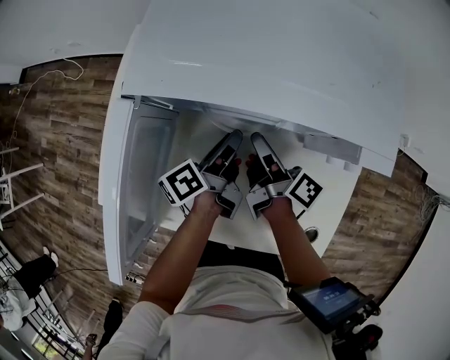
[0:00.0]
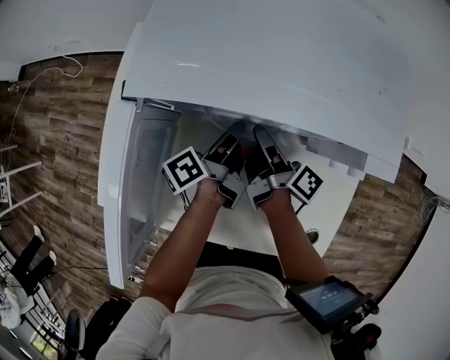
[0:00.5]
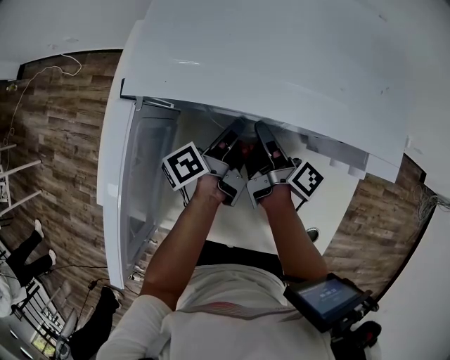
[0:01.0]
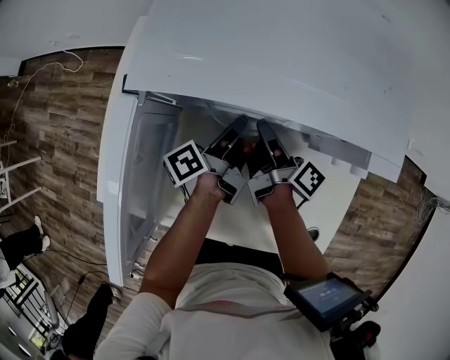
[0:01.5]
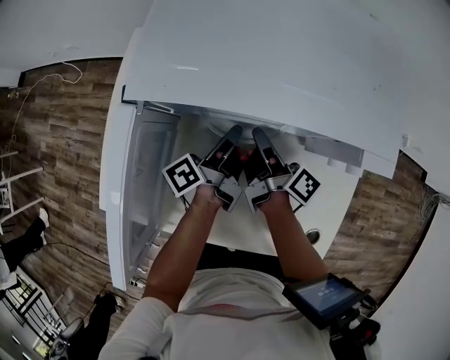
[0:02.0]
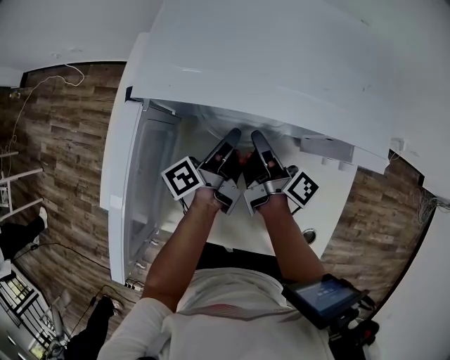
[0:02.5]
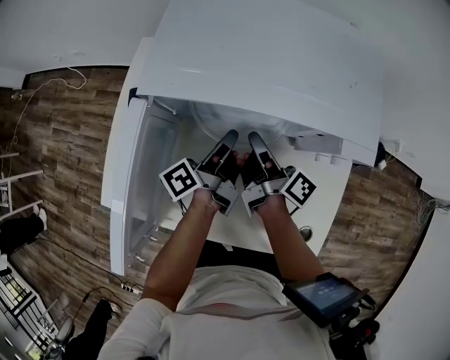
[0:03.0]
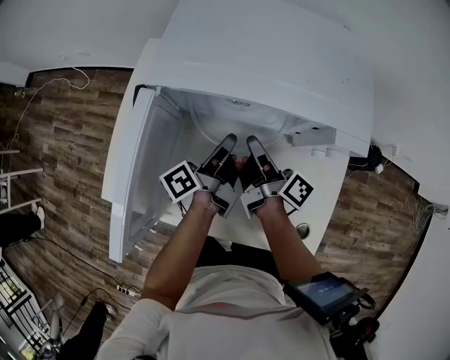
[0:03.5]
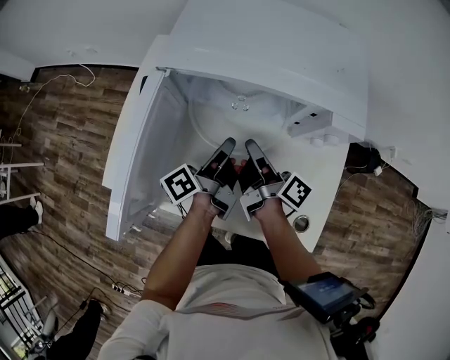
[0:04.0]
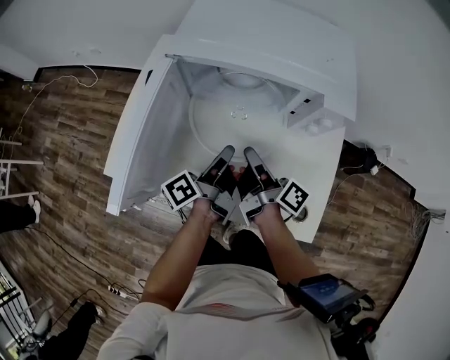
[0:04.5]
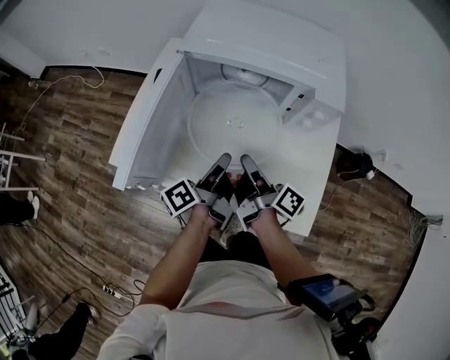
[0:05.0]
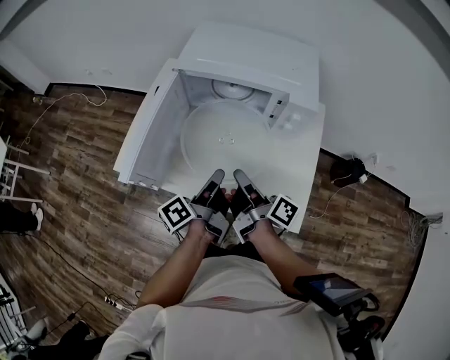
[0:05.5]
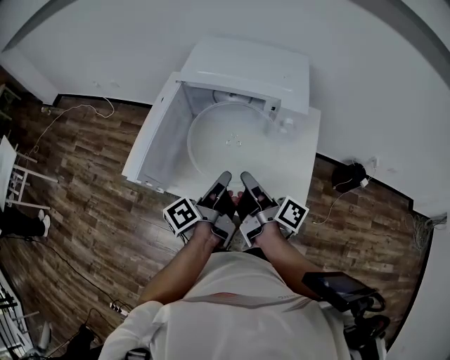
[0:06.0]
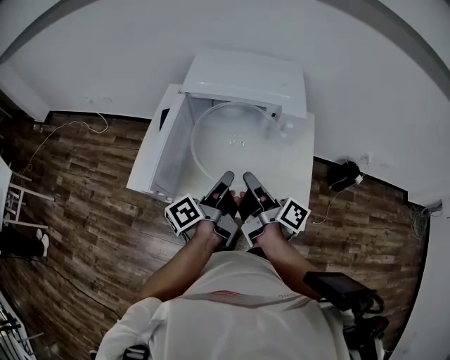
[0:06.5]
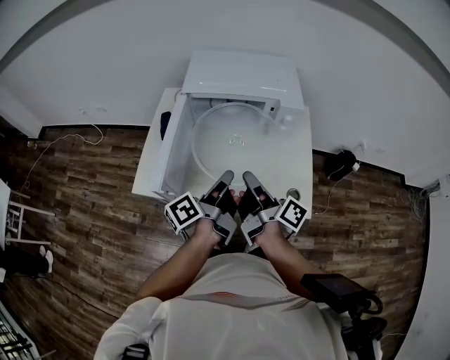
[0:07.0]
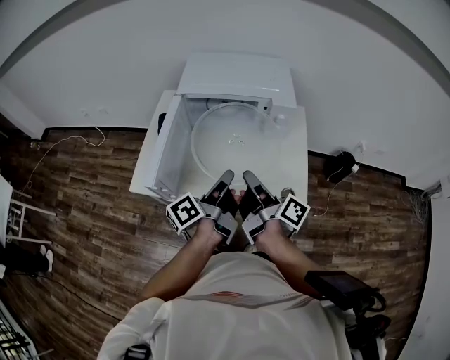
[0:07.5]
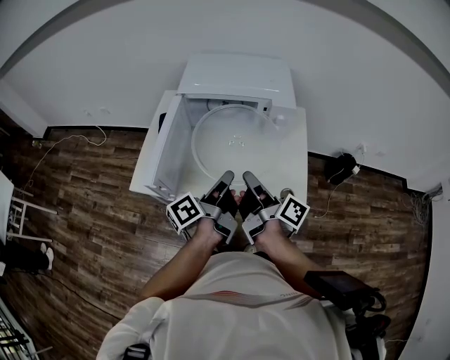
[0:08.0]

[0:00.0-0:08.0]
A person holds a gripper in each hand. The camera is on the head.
0:00.0 to 0:02.0: The right gripper closes. The left gripper closes.
0:02.0 to 0:04.0: The two grippers go some 10 cm backward and upward.
0:04.0 to 0:06.0: Both grippers travel together backward and upward, approximately 25 cm.
0:06.0 to 0:08.0: The right gripper shifts by some 5 cm. The left gripper changes place by about 5 cm.

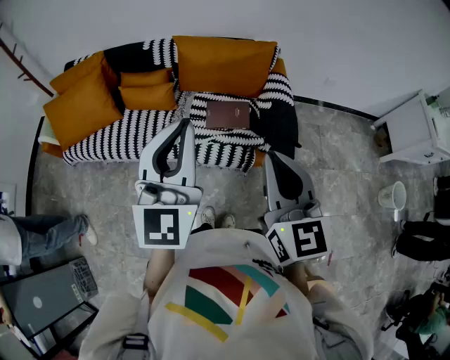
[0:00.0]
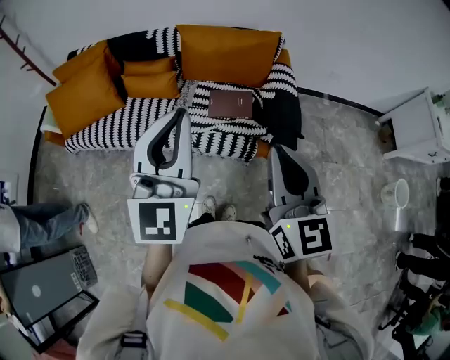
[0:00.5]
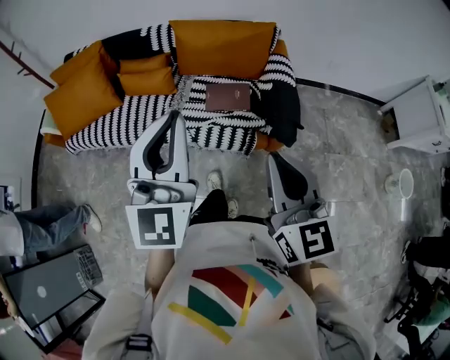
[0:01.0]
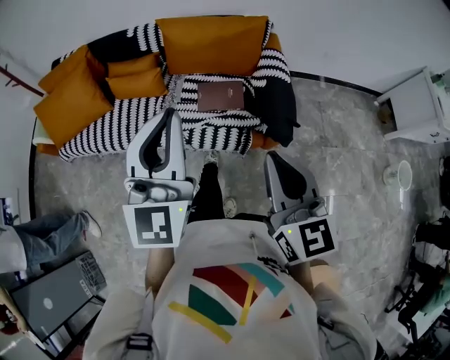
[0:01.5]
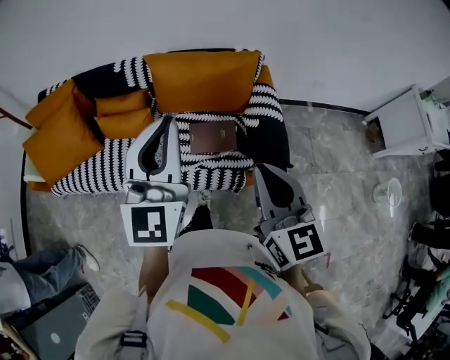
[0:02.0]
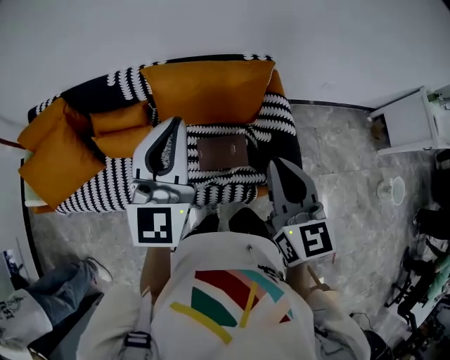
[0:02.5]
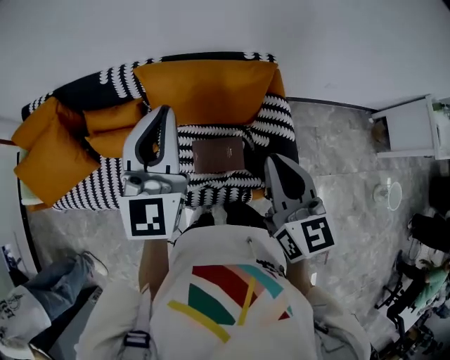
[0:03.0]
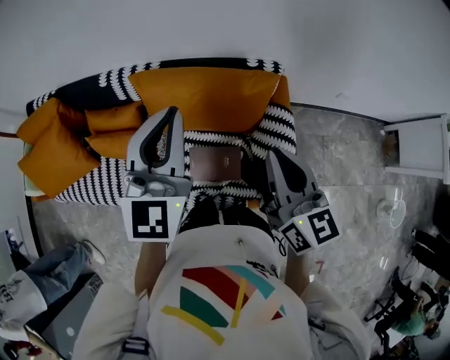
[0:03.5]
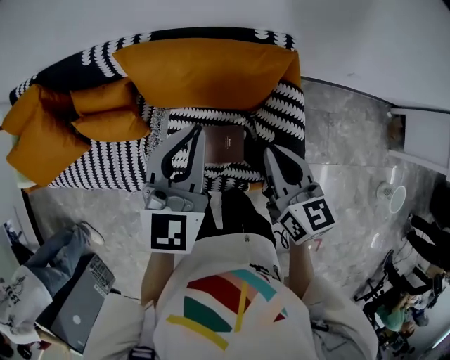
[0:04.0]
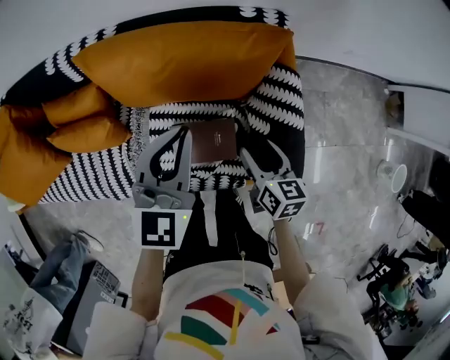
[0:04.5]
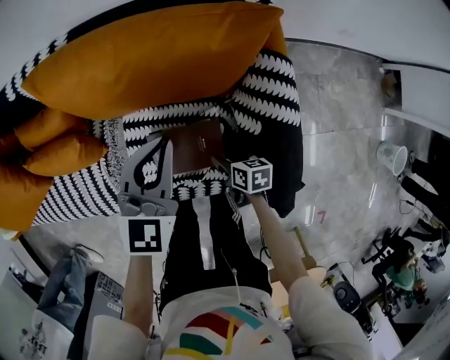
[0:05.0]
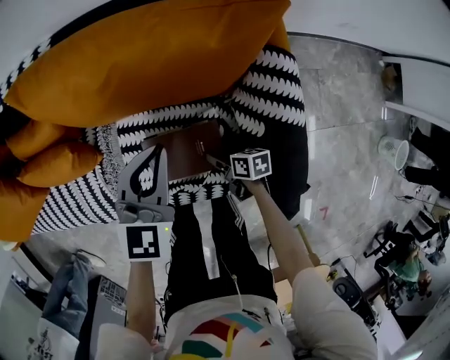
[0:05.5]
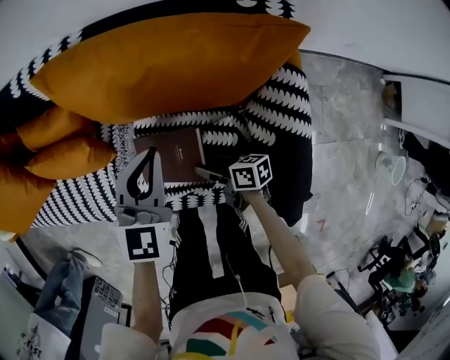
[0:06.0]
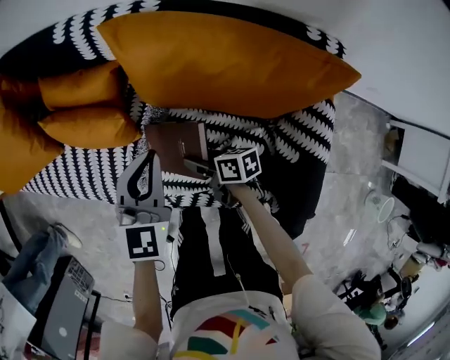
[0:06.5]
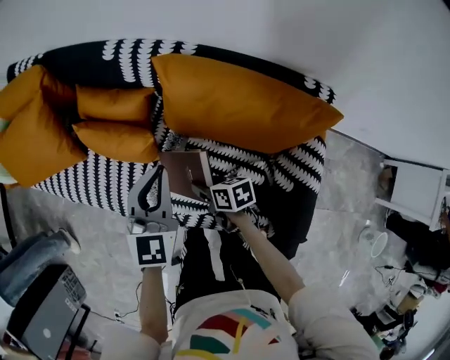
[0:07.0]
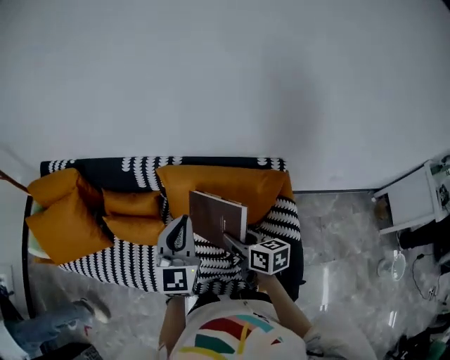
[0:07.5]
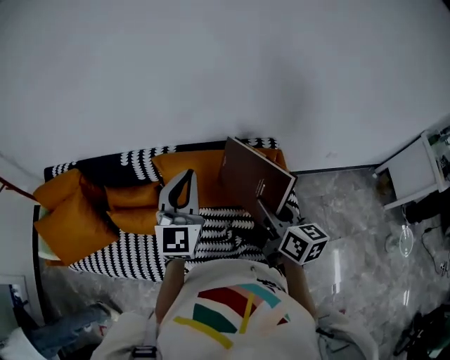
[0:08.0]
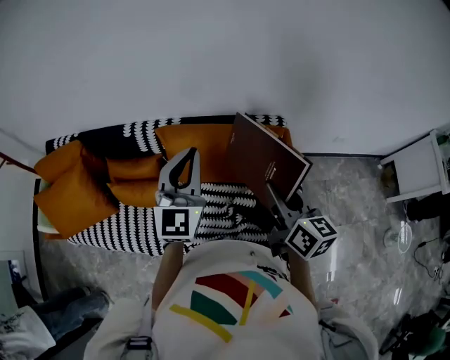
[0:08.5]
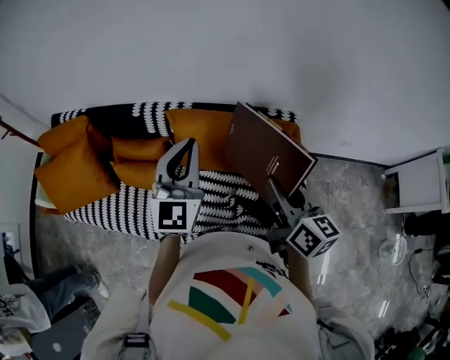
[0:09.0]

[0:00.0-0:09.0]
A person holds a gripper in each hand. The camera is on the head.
0:00.0 to 0:02.0: Both grippers travel together forward, about 15 cm.
0:02.0 to 0:04.5: The right gripper goes about 50 cm downward and forward, changes its angle by about 40 degrees, and opens its fingers. Meanwhile the left gripper shifts approximately 40 cm forward and downward, and turns by some 30 degrees.
0:04.5 to 0:07.0: The right gripper moves approximately 30 cm, and rotates some 50 degrees. The left gripper travels downward and back again, about 15 cm each way, and changes its angle by roughly 30 degrees.
0:07.0 to 0:09.0: The left gripper moves upward, about 25 cm, and swivels about 20 degrees, while the right gripper moves upward, about 40 cm, and tips its fingers upward by some 30 degrees.

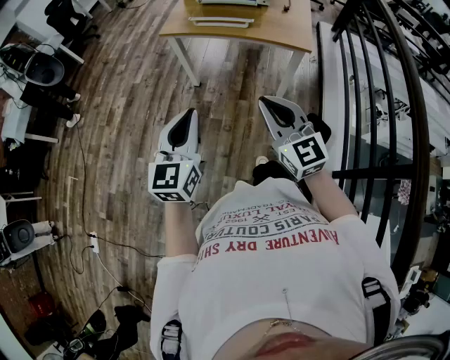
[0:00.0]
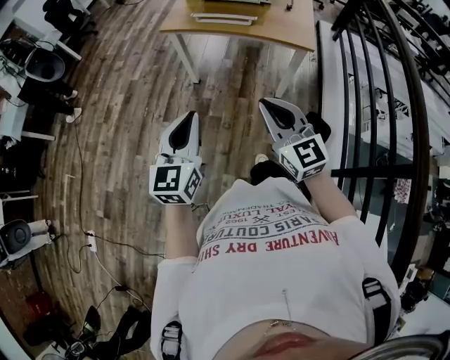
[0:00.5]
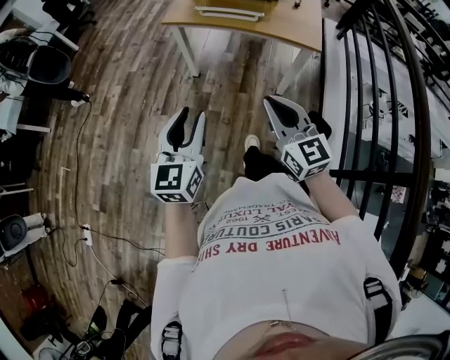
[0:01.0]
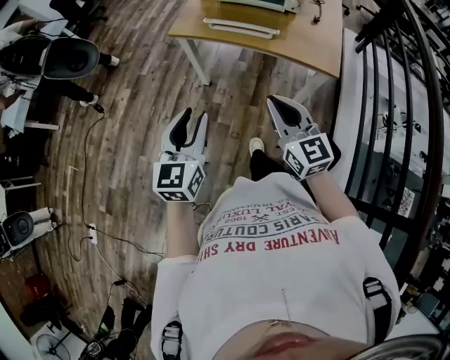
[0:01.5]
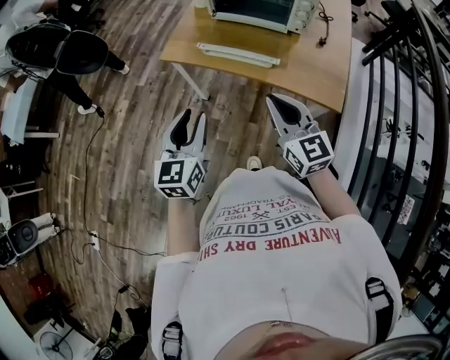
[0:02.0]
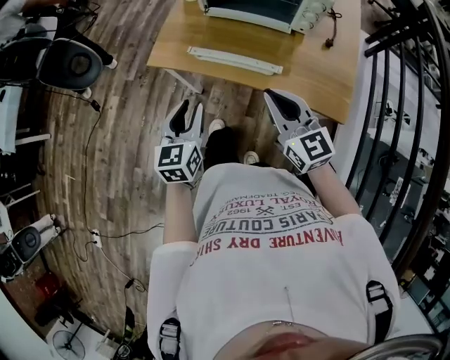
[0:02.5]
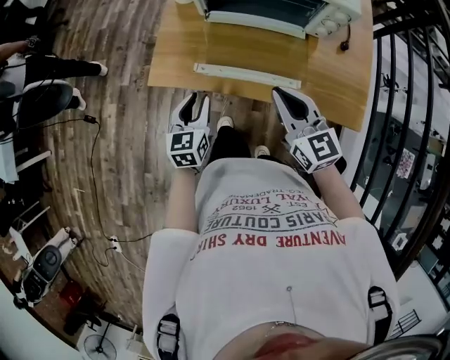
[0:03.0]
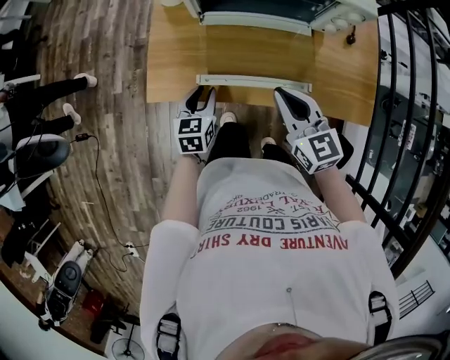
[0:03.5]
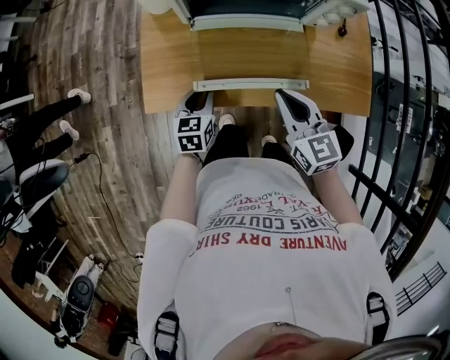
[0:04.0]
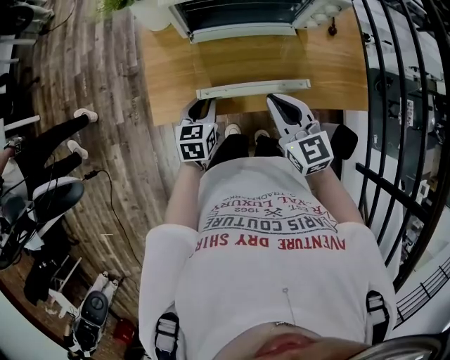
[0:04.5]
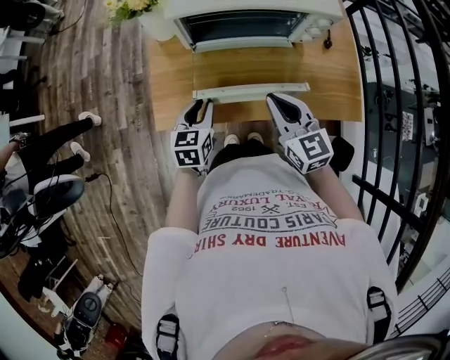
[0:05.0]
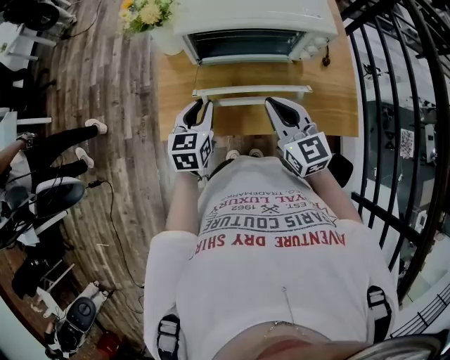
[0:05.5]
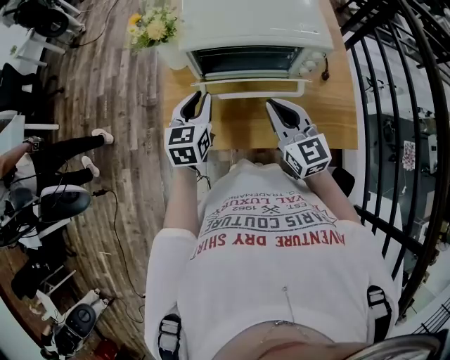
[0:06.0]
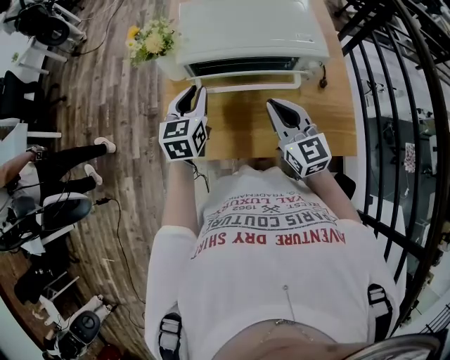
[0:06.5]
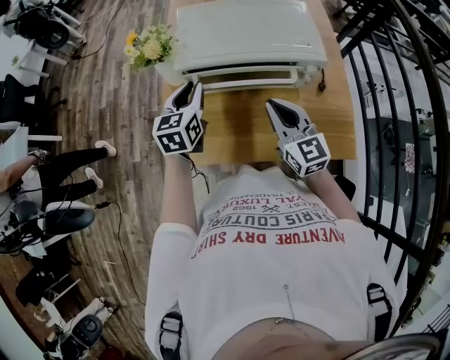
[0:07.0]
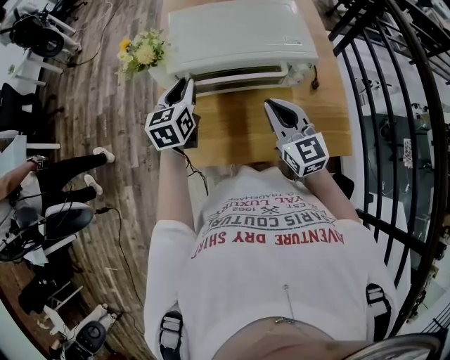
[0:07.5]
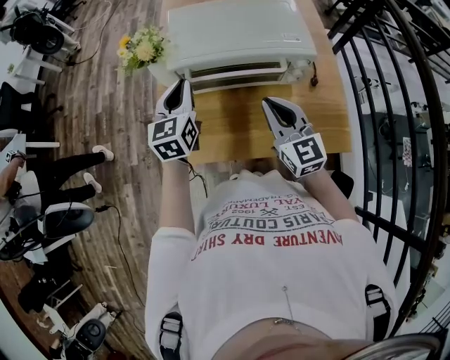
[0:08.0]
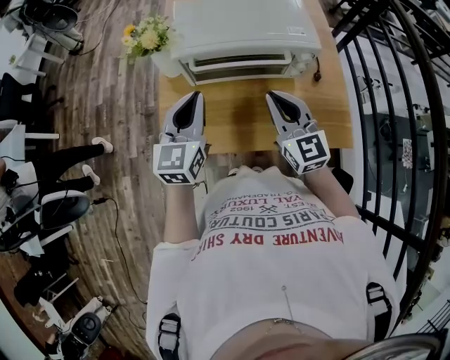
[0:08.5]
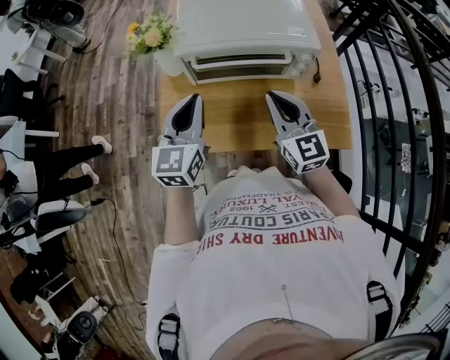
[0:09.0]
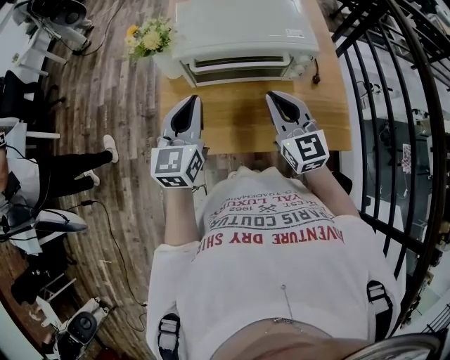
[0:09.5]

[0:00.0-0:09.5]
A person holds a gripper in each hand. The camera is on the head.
0:00.0 to 0:02.0: The two grippers go about 35 cm forward. The left gripper opens its fingers.
0:02.0 to 0:04.0: The right gripper is displaced forward and downward by about 25 cm, and swivels some 30 degrees. Meanwhile the left gripper moves forward and downward, roughly 40 cm, and changes its angle by approximately 30 degrees.
0:04.0 to 0:05.5: The right gripper moves upward, roughly 10 cm; the left gripper heads upward, covering about 15 cm.
0:05.5 to 0:07.5: The right gripper travels forward by roughly 5 cm, while the left gripper heads forward and upward, covering some 15 cm.
0:07.5 to 0:09.5: The left gripper travels backward and upward by about 15 cm.
